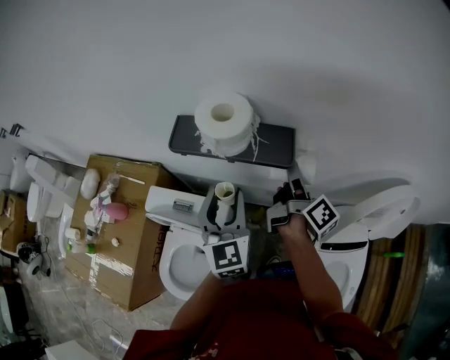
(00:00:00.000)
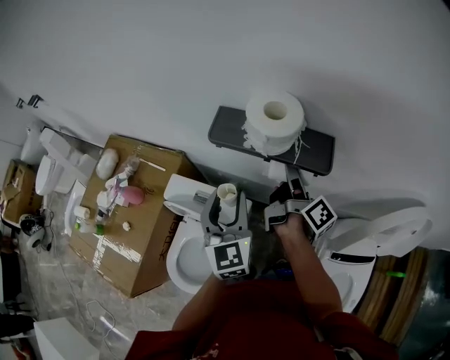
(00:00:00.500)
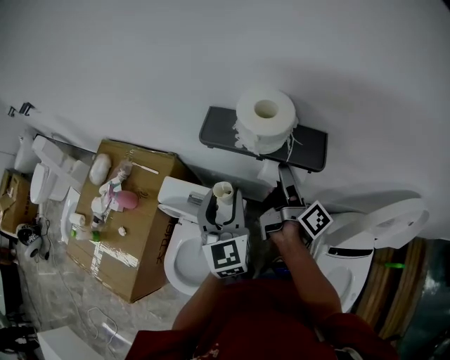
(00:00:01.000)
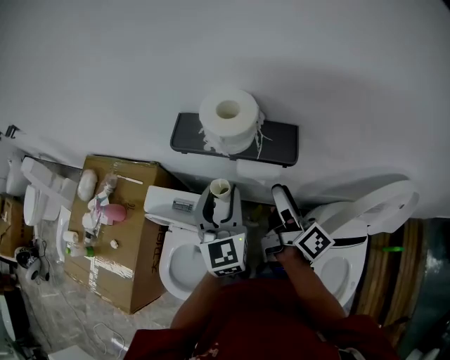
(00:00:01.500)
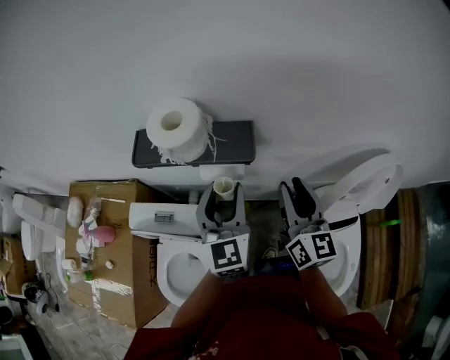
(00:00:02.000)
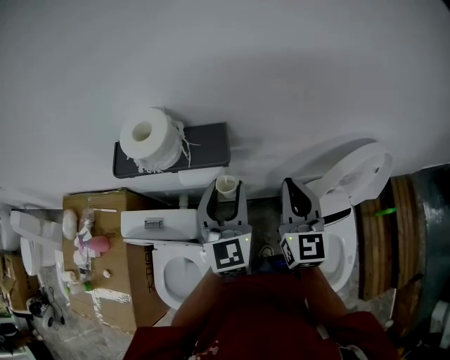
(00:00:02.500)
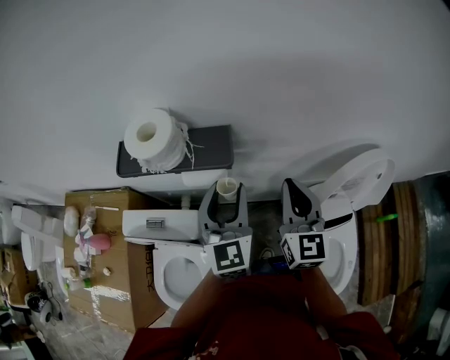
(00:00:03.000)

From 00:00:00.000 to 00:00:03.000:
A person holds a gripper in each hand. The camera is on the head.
From 00:00:00.000 to 00:00:01.500: The left gripper reaches about 10 cm to the left, then returns. Meanwhile the right gripper is displaced backward and to the left by some 10 cm.
From 00:00:01.500 to 00:00:03.000: The grippers both shift to the right by about 15 cm. The right gripper rotates around the line of its fingers by roughly 70 degrees, counterclockwise from behind, and closes its fingers.

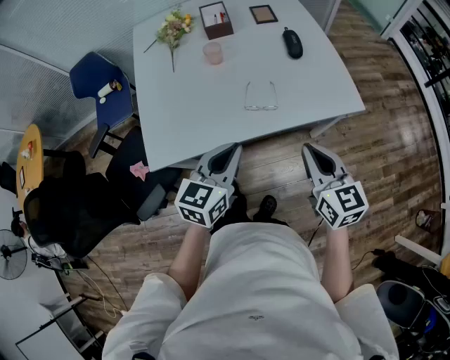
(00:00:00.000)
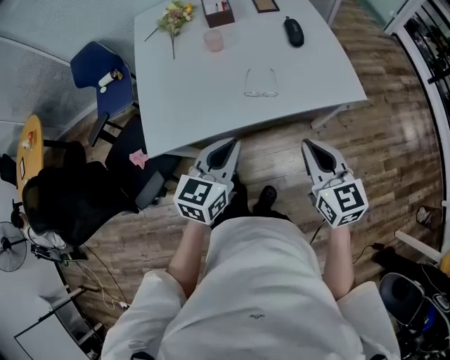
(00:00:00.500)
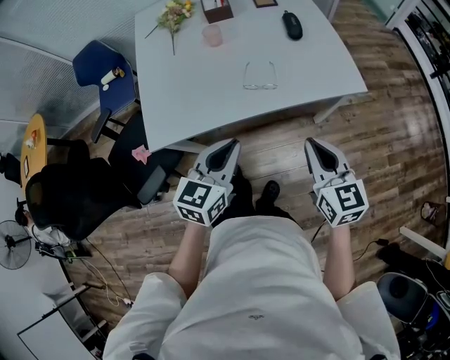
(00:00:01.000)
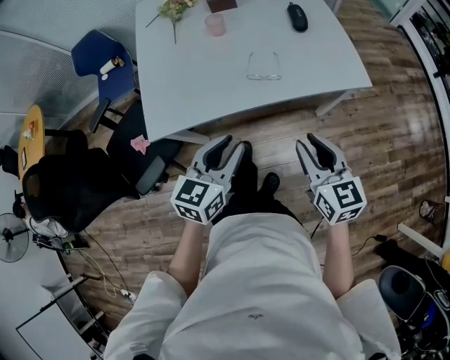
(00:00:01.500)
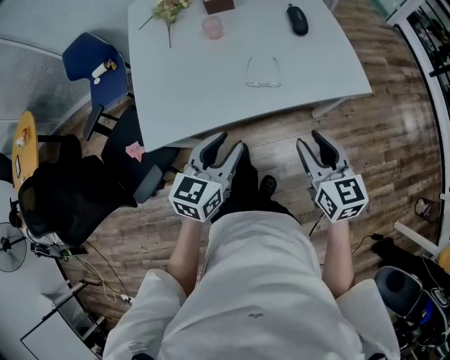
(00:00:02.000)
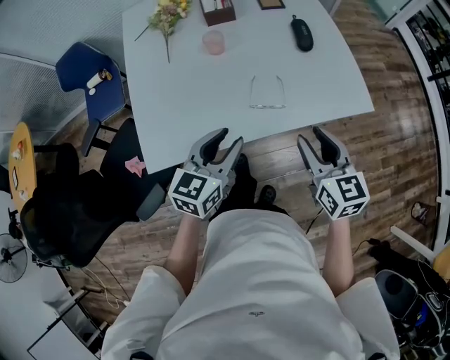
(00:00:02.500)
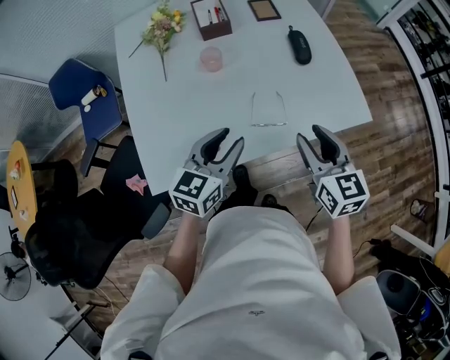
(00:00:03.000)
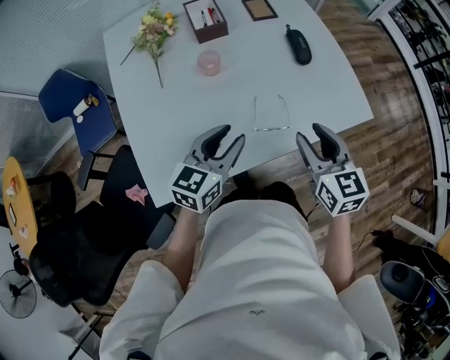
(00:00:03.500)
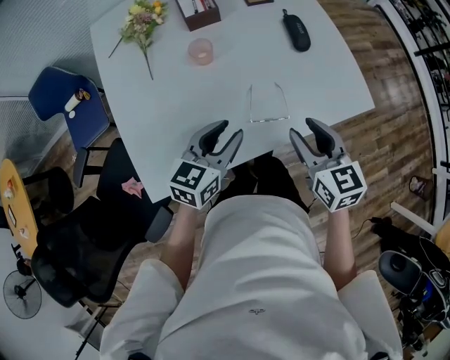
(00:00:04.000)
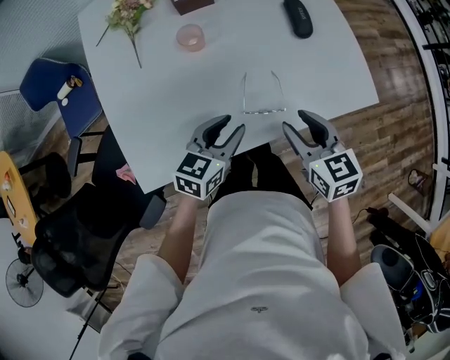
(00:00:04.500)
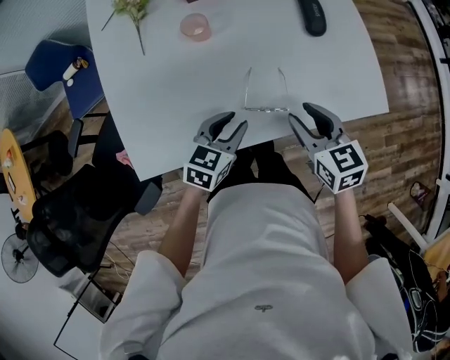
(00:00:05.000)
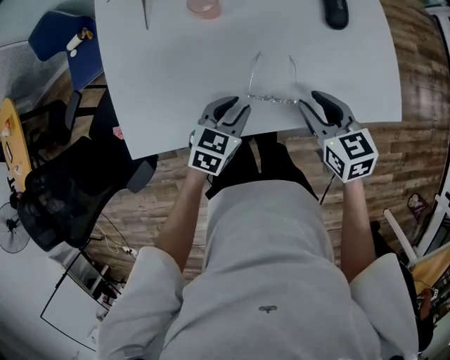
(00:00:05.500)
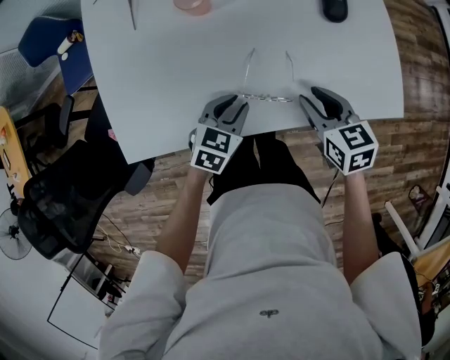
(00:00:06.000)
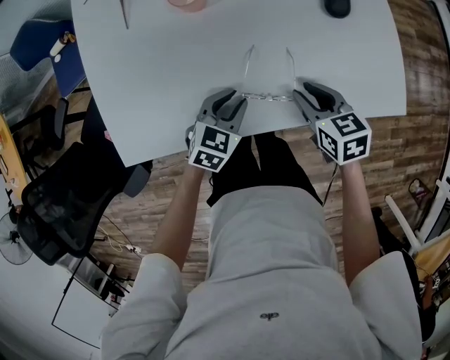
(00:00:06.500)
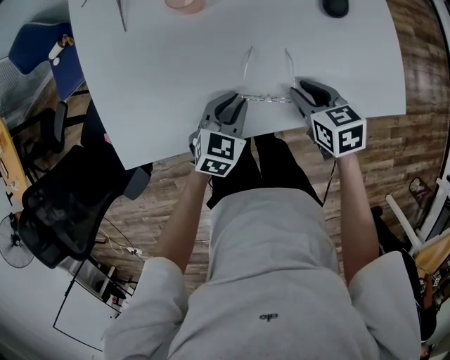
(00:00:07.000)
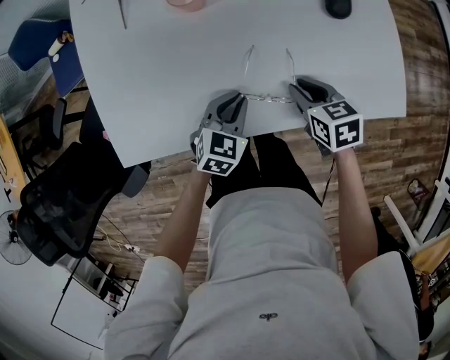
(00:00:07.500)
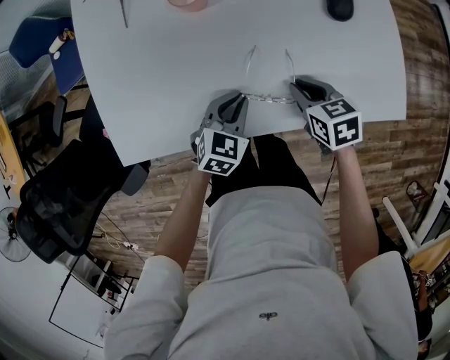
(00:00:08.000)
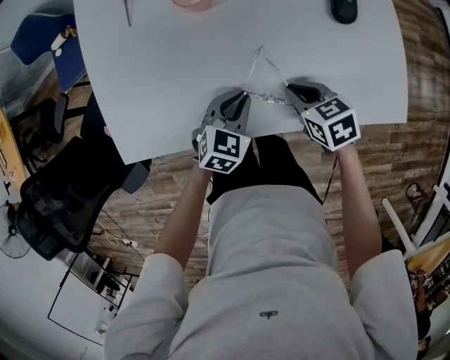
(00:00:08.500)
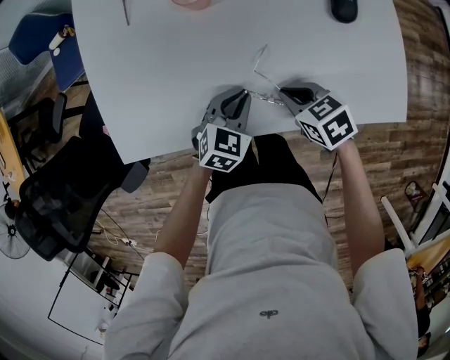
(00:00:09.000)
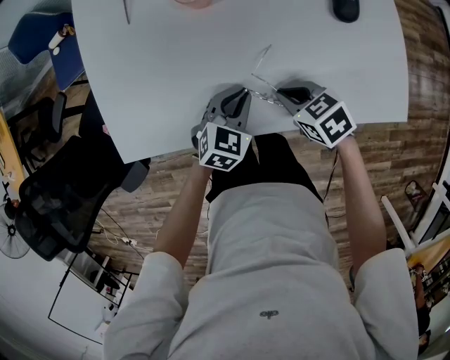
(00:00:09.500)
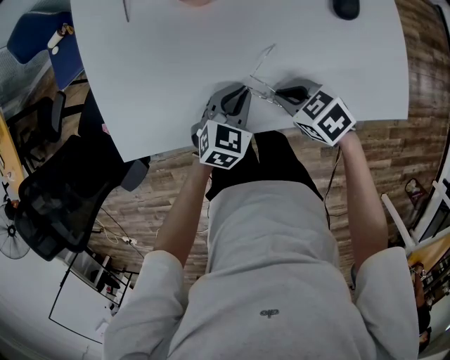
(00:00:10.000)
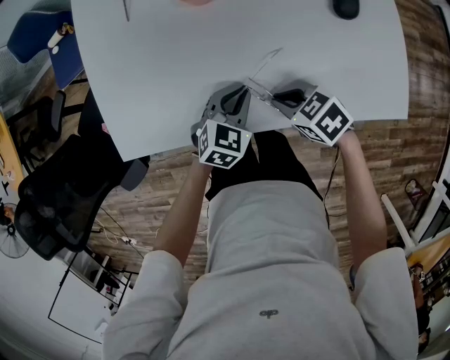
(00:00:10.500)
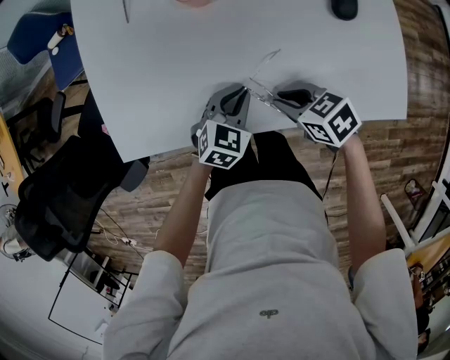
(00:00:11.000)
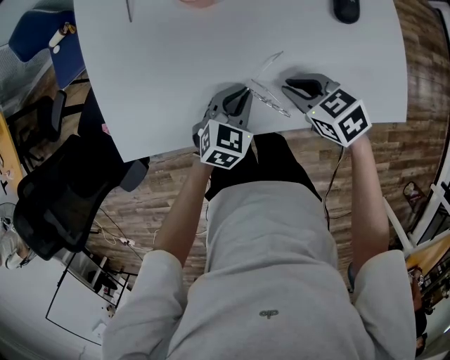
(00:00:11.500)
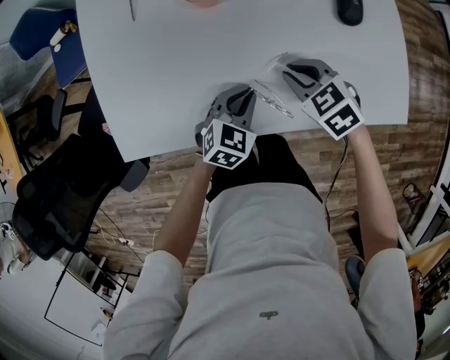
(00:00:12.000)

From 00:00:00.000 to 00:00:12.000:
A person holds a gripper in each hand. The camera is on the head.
From 00:00:00.000 to 00:00:02.000: The left gripper opens. Meanwhile the right gripper opens its fingers.
From 00:00:02.000 to 00:00:04.000: The right gripper is displaced forward and to the left by some 20 cm. The left gripper shifts some 20 cm forward.
From 00:00:04.000 to 00:00:06.000: The left gripper moves downward, roughly 20 cm, and swivels roughly 30 degrees. The right gripper goes approximately 15 cm downward and forward, and swivels about 20 degrees.
From 00:00:06.000 to 00:00:08.000: The right gripper travels downward by some 5 cm, and closes up.
From 00:00:08.000 to 00:00:10.000: The right gripper shifts some 5 cm to the left, and swivels roughly 30 degrees.
From 00:00:10.000 to 00:00:12.000: The right gripper is displaced forward by some 5 cm.

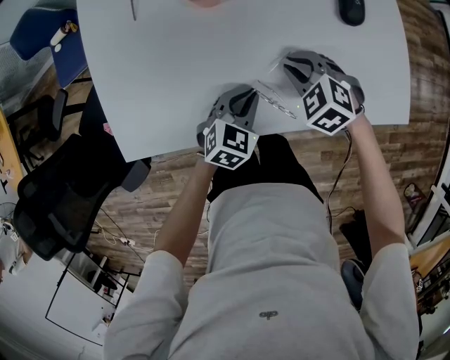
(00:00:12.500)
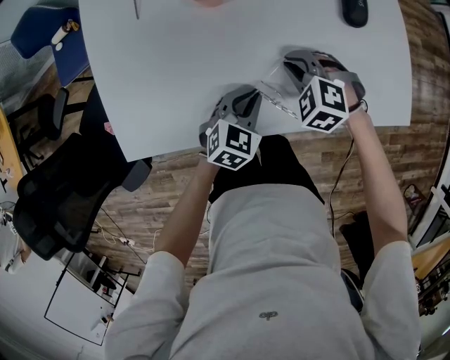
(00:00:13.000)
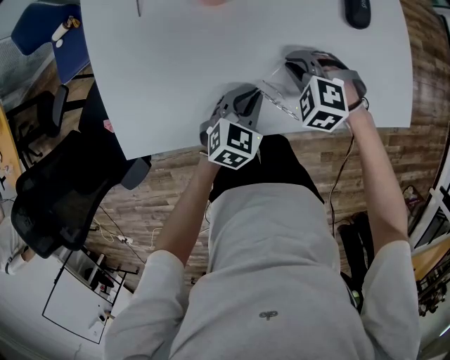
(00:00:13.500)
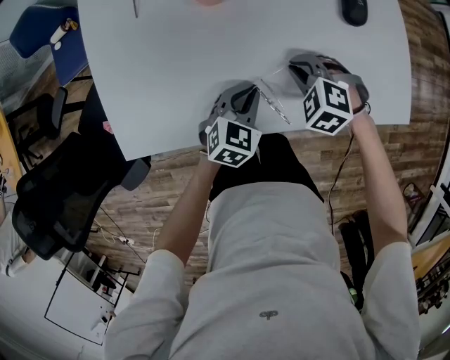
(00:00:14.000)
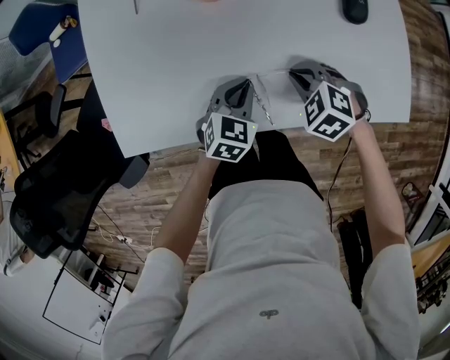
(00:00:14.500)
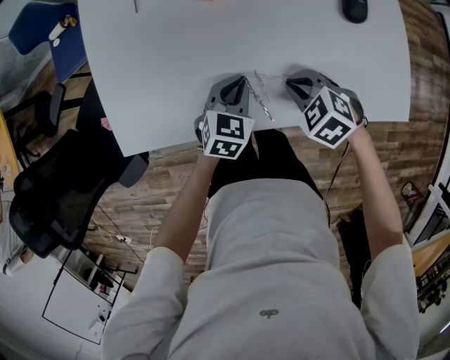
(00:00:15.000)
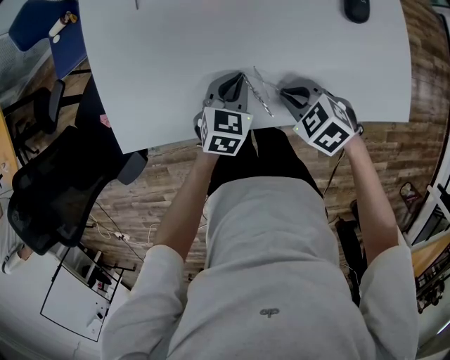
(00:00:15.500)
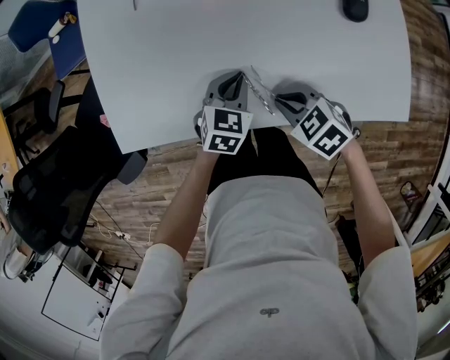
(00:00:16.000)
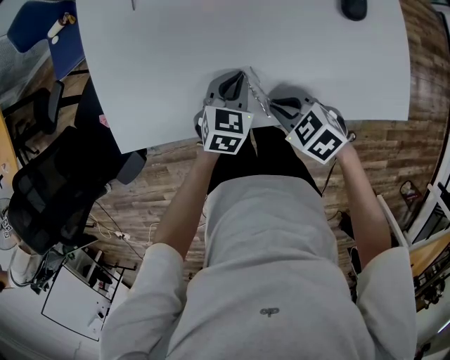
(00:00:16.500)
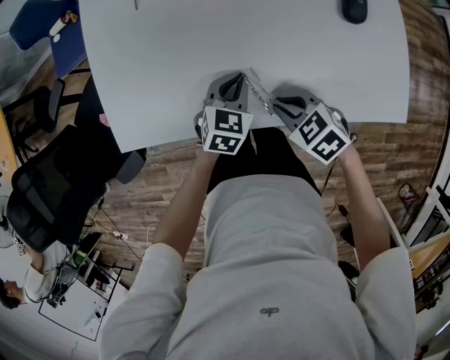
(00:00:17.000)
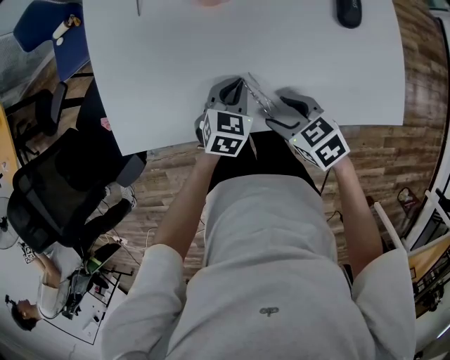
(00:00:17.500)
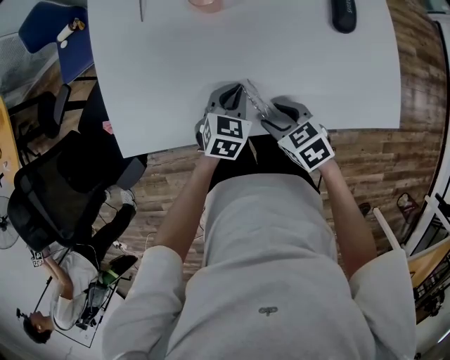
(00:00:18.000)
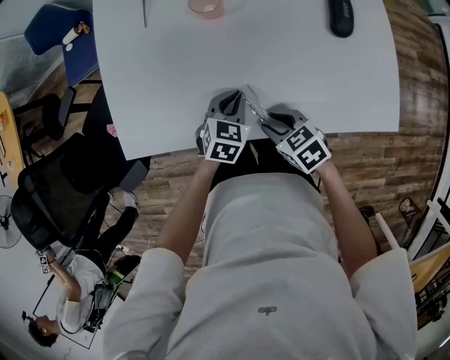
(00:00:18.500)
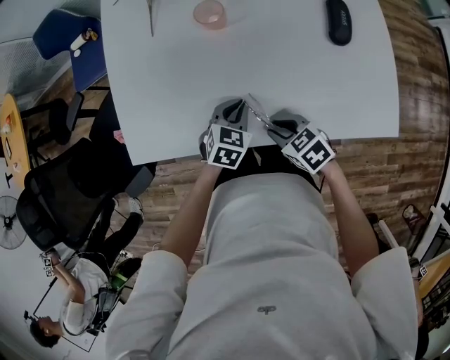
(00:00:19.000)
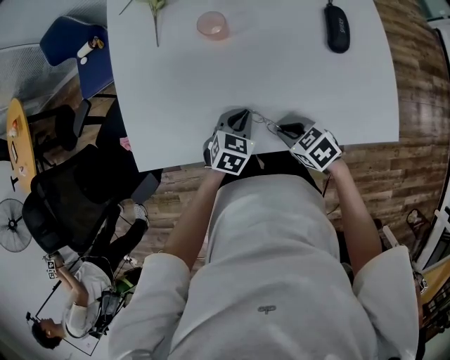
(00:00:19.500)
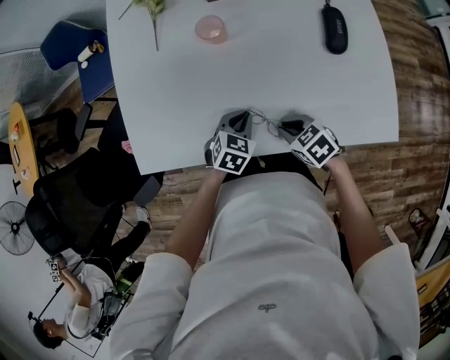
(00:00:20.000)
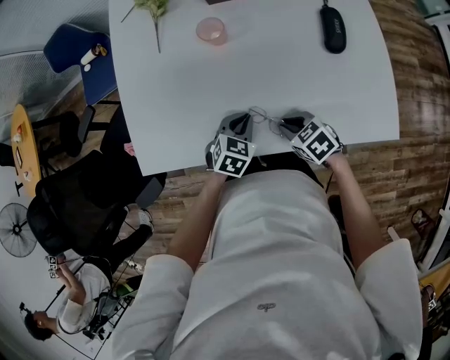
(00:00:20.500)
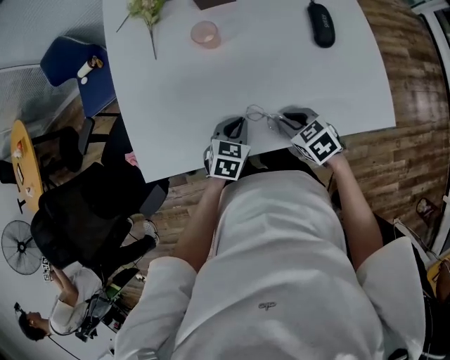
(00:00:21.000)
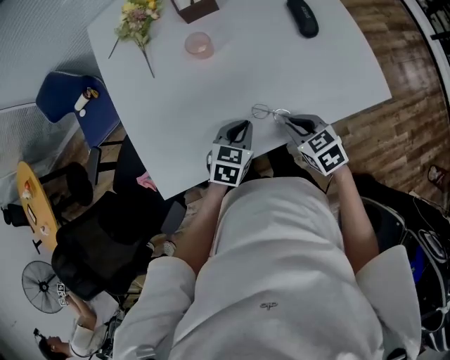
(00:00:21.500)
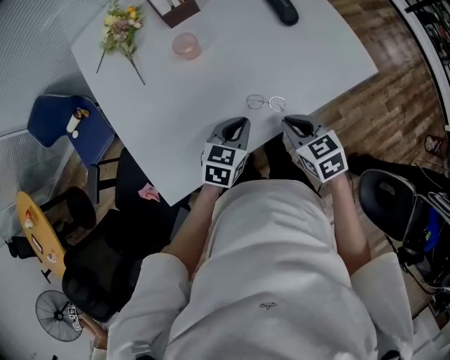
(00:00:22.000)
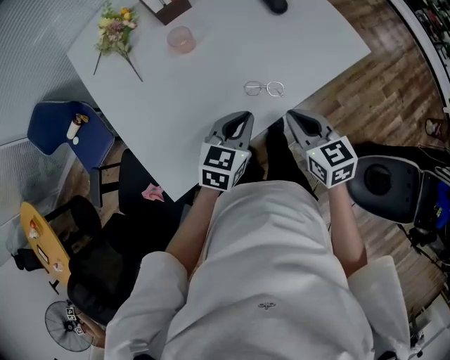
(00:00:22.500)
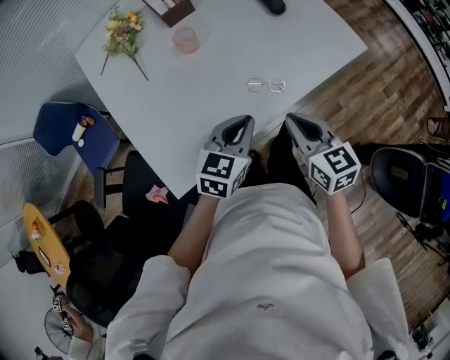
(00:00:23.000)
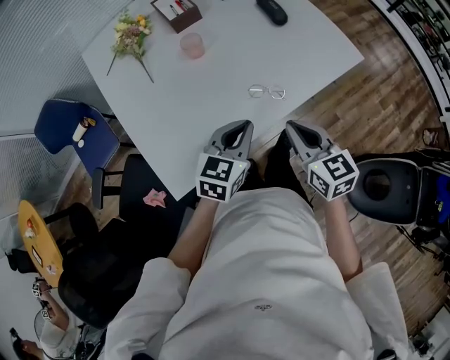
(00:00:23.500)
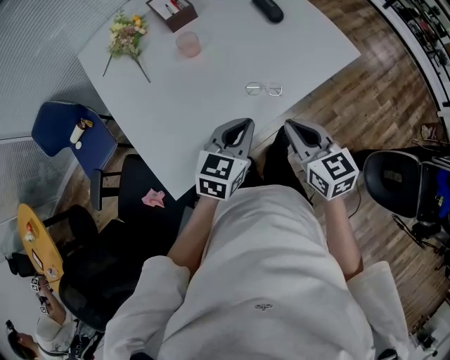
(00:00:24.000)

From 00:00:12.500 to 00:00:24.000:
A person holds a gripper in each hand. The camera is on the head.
From 00:00:12.500 to 00:00:14.500: The grippers make only small movements.
From 00:00:14.500 to 00:00:16.500: The right gripper heads backward and to the left, covering roughly 10 cm, and swivels roughly 30 degrees.
From 00:00:16.500 to 00:00:18.500: The right gripper opens its fingers.
From 00:00:18.500 to 00:00:20.000: The right gripper closes up.
From 00:00:20.000 to 00:00:22.000: The two grippers go about 10 cm upward. The right gripper swivels some 40 degrees; the left gripper turns by some 30 degrees.
From 00:00:22.000 to 00:00:24.000: Both grippers move upward and backward, approximately 15 cm. The right gripper turns by some 30 degrees.
